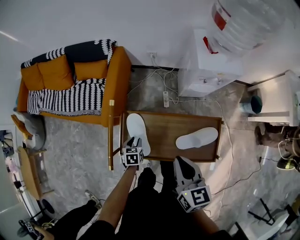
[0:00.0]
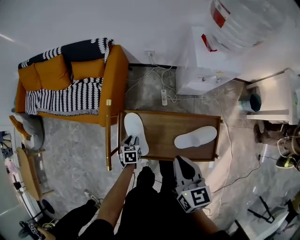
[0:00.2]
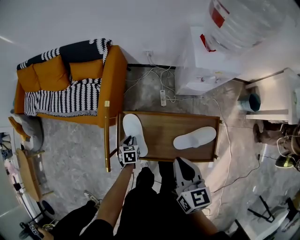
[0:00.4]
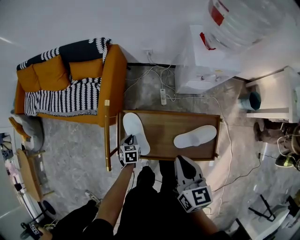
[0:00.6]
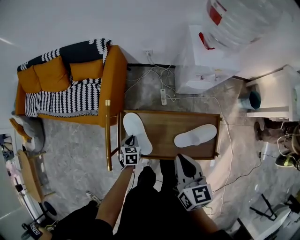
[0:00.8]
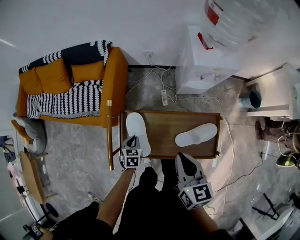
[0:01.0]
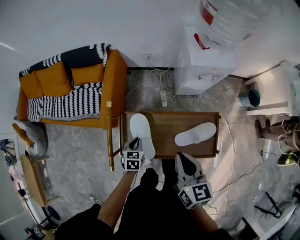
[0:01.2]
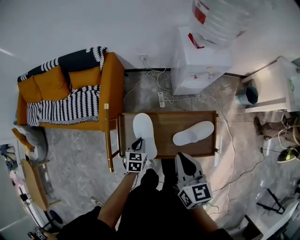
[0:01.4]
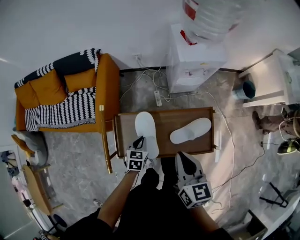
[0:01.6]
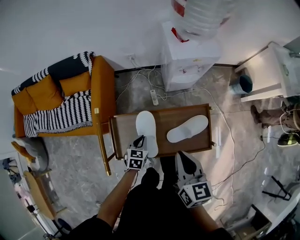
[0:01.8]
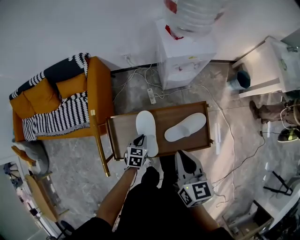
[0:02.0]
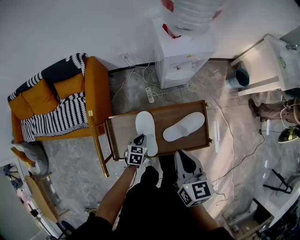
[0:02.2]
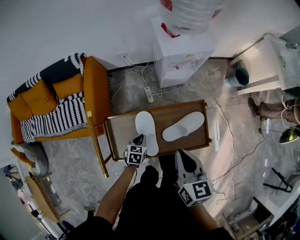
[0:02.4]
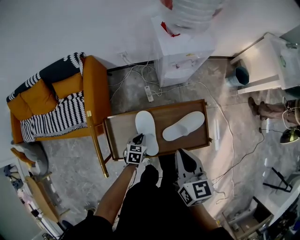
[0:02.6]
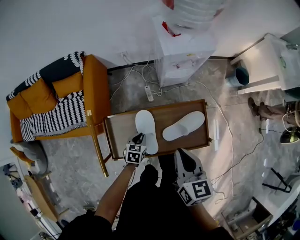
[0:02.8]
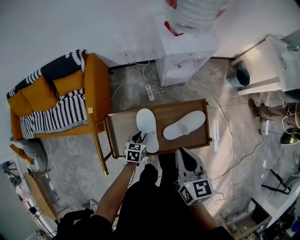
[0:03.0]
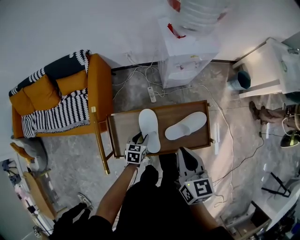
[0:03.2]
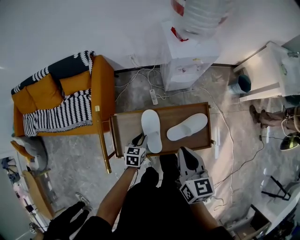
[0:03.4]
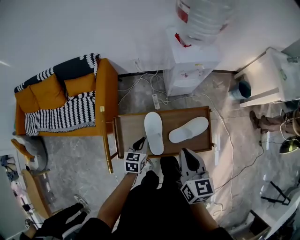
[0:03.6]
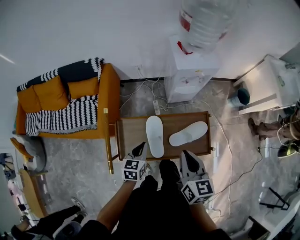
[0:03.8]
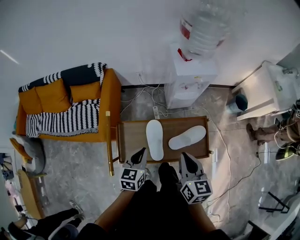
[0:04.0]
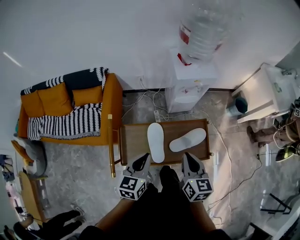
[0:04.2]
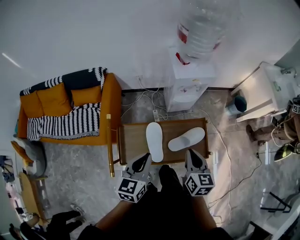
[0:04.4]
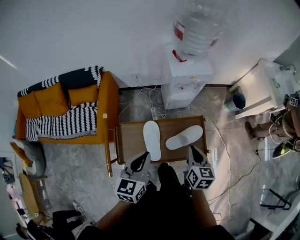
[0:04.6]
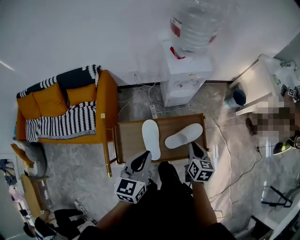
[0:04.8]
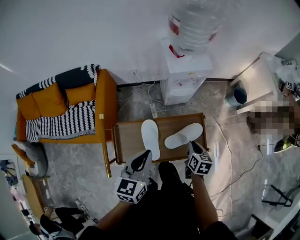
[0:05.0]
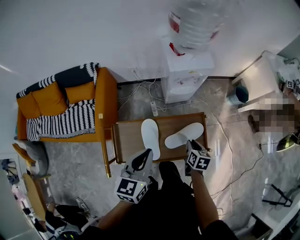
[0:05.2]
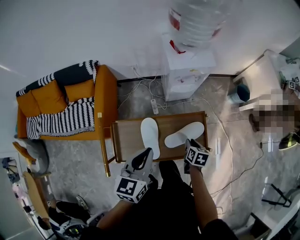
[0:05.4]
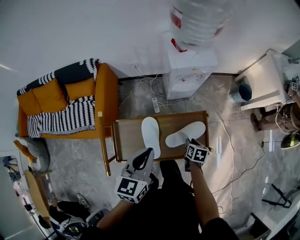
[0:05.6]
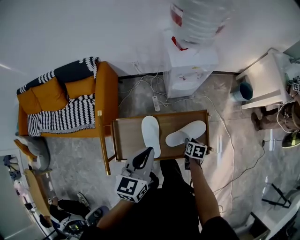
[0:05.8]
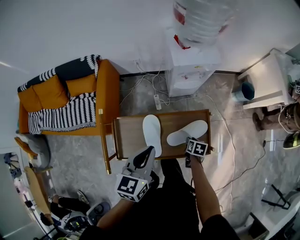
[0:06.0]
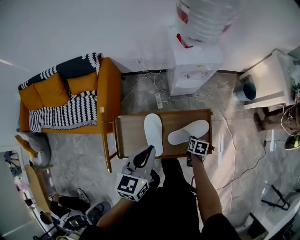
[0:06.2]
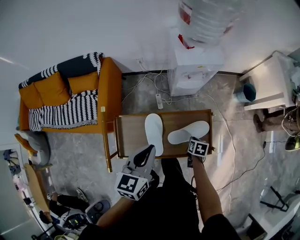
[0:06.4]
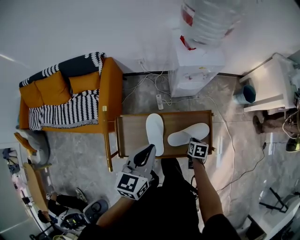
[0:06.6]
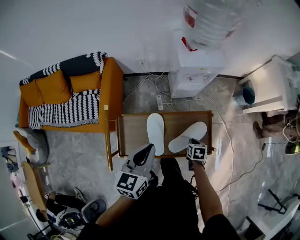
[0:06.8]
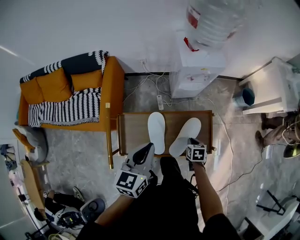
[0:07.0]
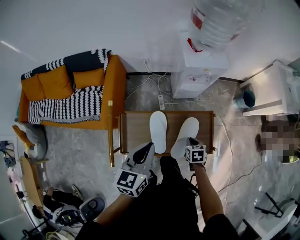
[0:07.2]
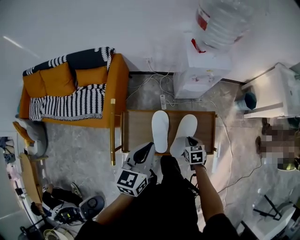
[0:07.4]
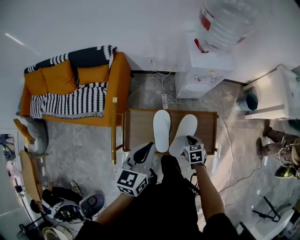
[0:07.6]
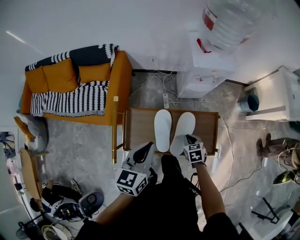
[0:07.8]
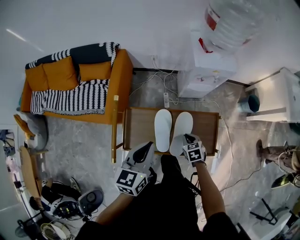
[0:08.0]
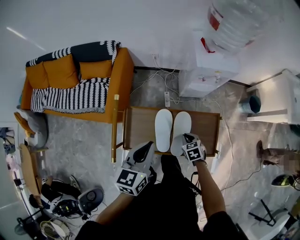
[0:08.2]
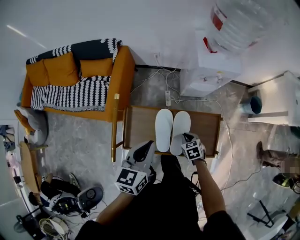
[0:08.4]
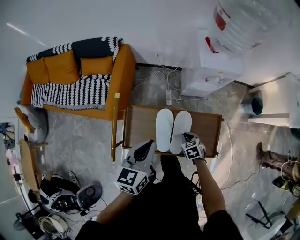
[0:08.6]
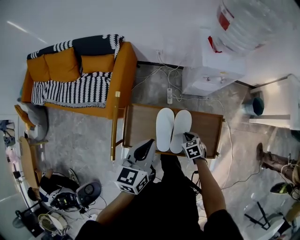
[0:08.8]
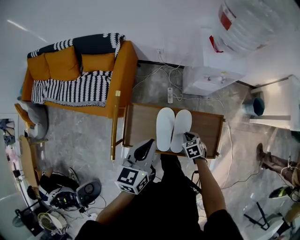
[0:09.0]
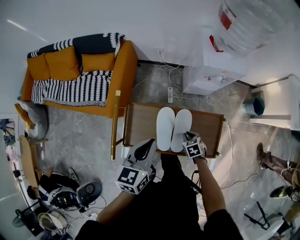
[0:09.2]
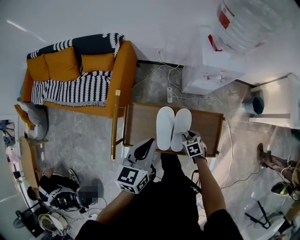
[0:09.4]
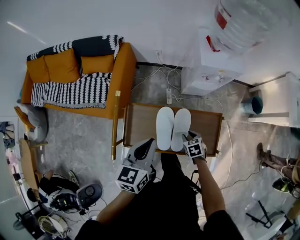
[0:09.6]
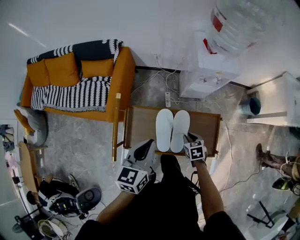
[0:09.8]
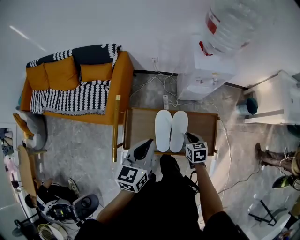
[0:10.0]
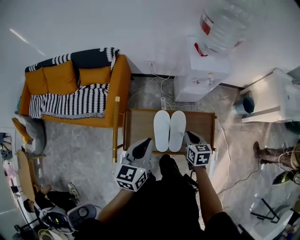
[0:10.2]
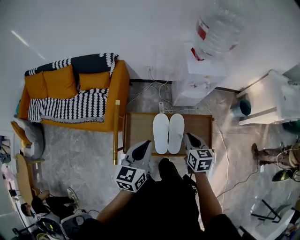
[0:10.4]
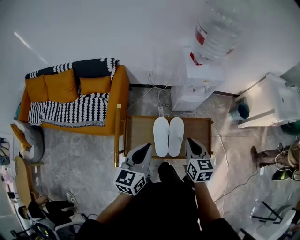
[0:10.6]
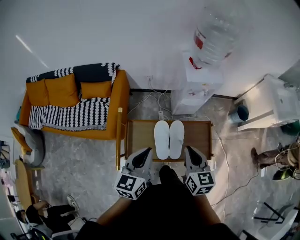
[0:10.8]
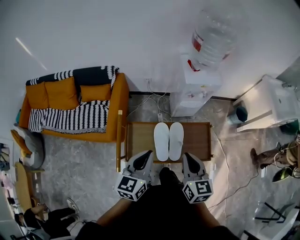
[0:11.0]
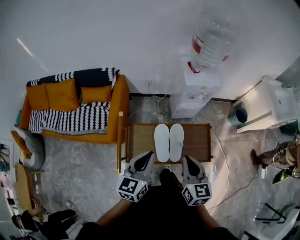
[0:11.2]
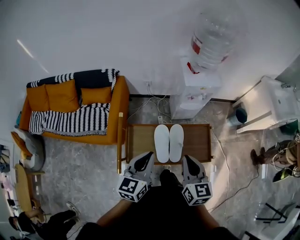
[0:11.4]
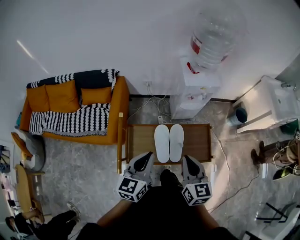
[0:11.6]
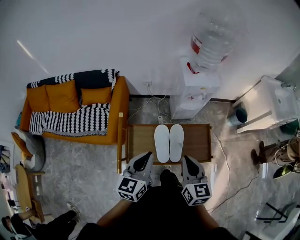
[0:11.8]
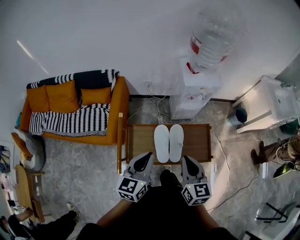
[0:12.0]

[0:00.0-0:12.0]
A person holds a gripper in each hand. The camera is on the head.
0:00.0 to 0:01.6: The left gripper is displaced to the right and upward by roughly 10 cm, changes its angle by about 20 degrees, and closes its fingers.
0:01.6 to 0:03.0: The left gripper shifts approximately 5 cm downward, and opens.
0:03.0 to 0:04.4: The left gripper moves upward, about 30 cm, angles its fingers upward, by roughly 30 degrees, and closes up.
0:04.4 to 0:06.0: The left gripper moves forward, approximately 5 cm; the right gripper shifts some 30 cm downward, tilts its fingers some 40 degrees downward, and opens.
0:06.0 to 0:07.6: The right gripper shifts approximately 10 cm to the left and upward, swivels about 40 degrees, and closes its fingers, while the left gripper shifts some 5 cm to the left.
0:07.6 to 0:09.0: The right gripper heads downward, covering some 5 cm.
0:09.0 to 0:10.4: The left gripper moves approximately 5 cm; the right gripper travels upward by some 20 cm, rotates some 40 degrees, and opens, then closes again.
0:10.4 to 0:12.0: The right gripper goes some 15 cm upward and backward.

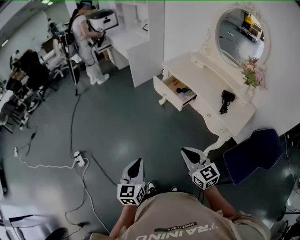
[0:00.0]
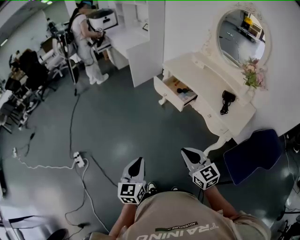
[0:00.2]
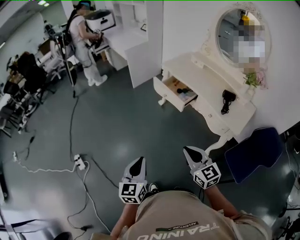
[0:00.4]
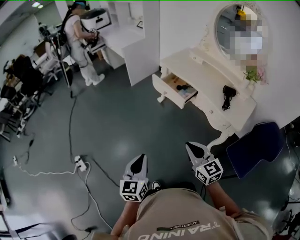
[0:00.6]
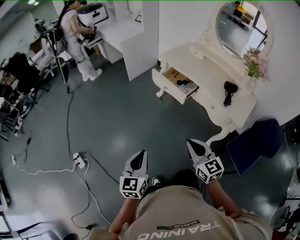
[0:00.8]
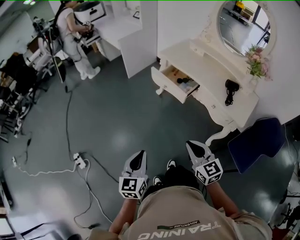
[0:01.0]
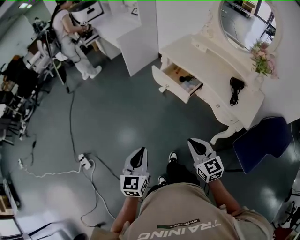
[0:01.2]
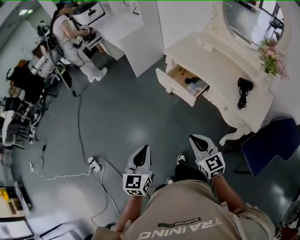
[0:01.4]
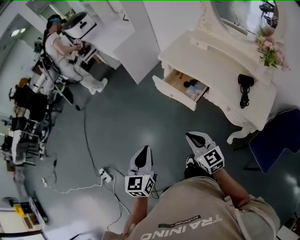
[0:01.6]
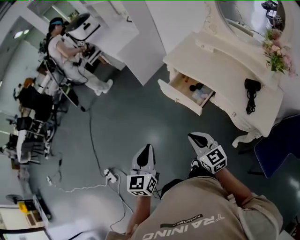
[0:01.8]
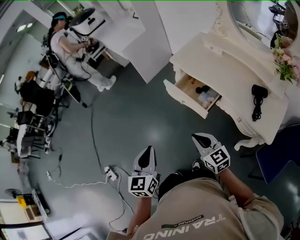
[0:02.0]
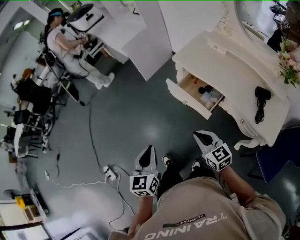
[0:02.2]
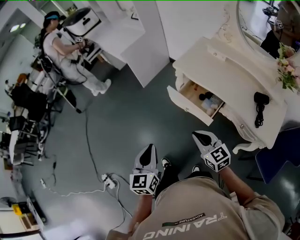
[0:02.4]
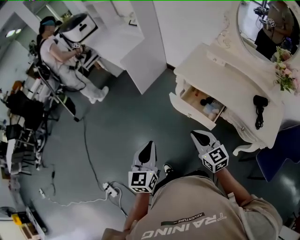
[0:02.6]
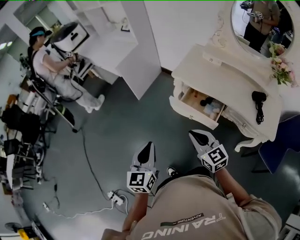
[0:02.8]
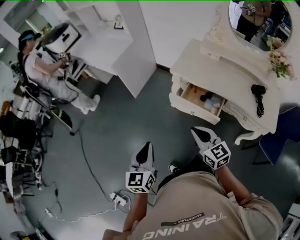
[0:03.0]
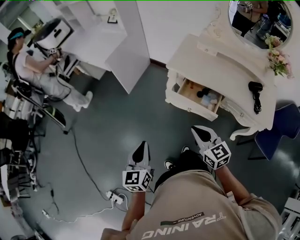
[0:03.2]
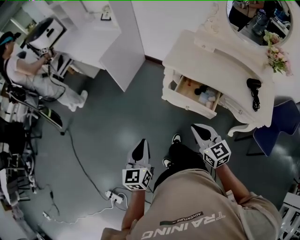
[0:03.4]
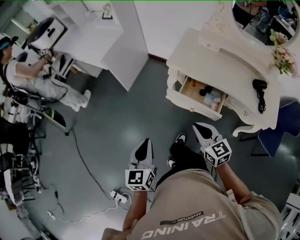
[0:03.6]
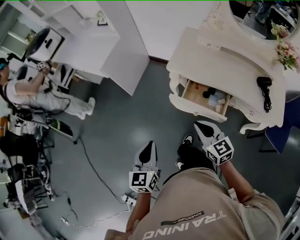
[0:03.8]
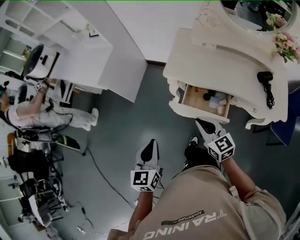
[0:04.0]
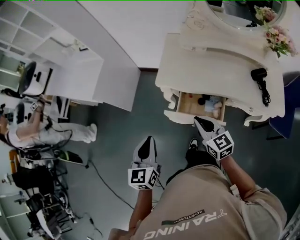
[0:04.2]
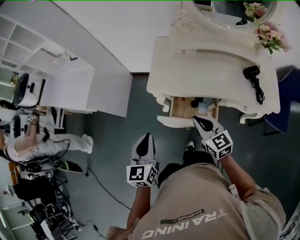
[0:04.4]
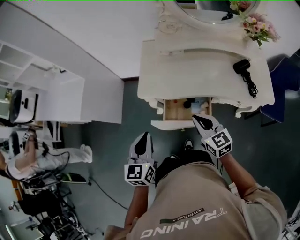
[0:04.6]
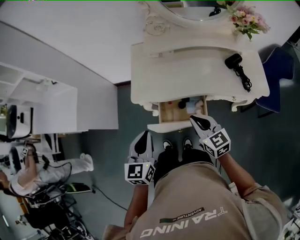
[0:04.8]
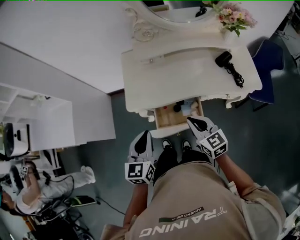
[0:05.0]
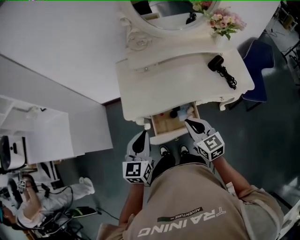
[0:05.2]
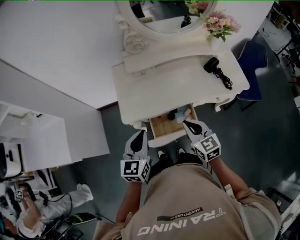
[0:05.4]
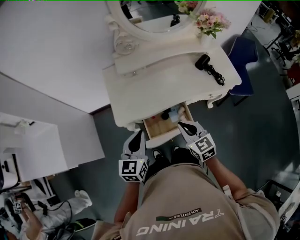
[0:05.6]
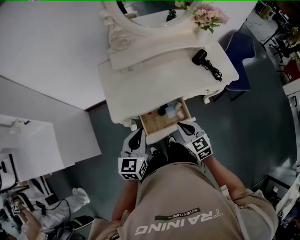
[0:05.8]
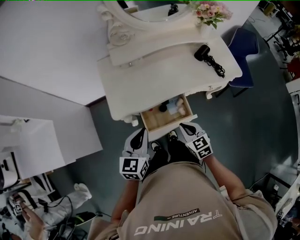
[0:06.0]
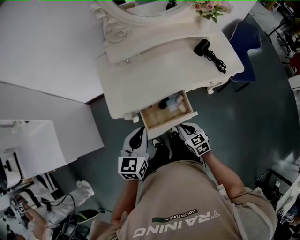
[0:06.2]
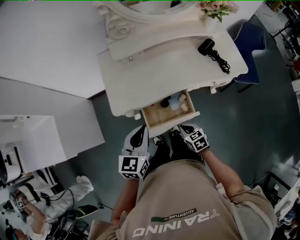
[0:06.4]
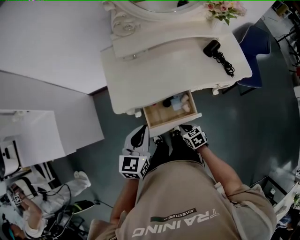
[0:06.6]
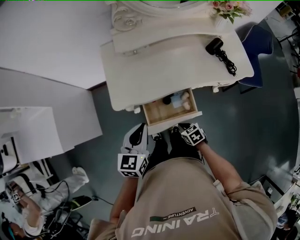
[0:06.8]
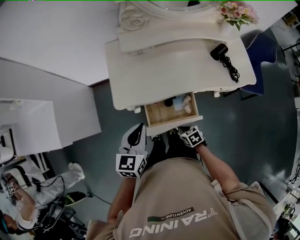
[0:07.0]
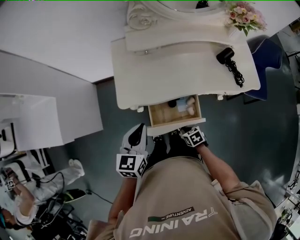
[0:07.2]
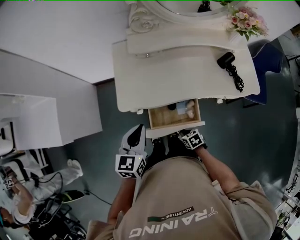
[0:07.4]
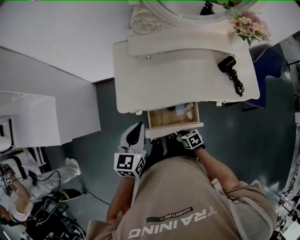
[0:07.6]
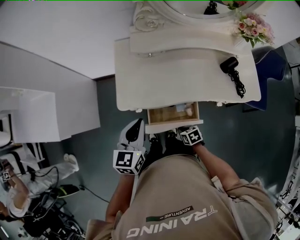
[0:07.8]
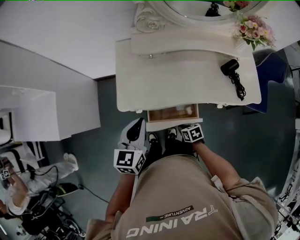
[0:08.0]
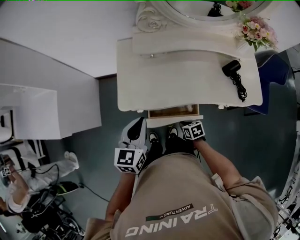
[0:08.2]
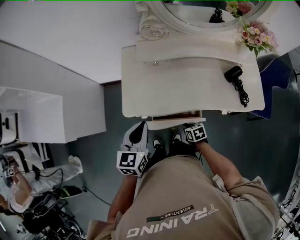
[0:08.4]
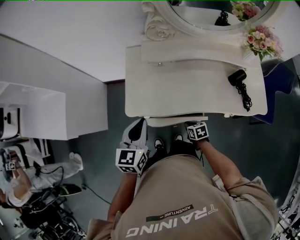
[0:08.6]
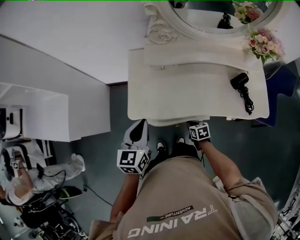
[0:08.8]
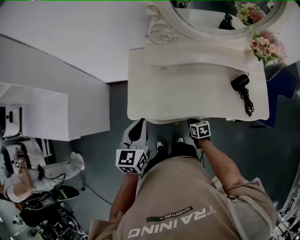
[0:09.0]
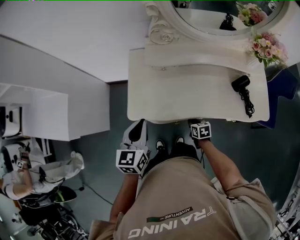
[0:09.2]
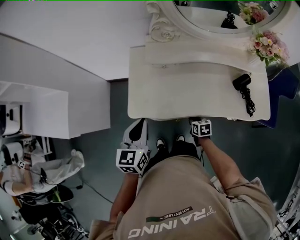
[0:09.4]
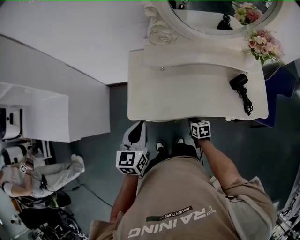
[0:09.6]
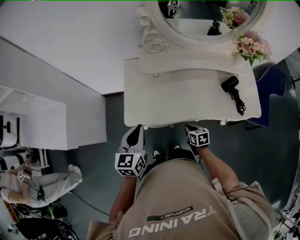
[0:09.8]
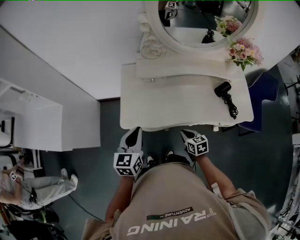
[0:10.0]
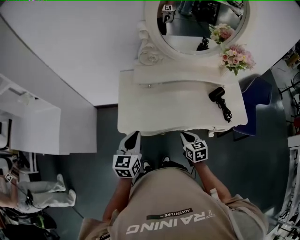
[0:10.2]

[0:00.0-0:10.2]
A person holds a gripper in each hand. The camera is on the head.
0:00.0 to 0:01.4: Both grippers move forward, roughly 20 cm.
0:01.4 to 0:03.0: The left gripper moves forward, some 30 cm, while the right gripper goes about 30 cm forward and to the left.
0:03.0 to 0:04.4: The right gripper goes about 20 cm forward and to the right, and rotates about 20 degrees. Meanwhile the left gripper travels forward by about 25 cm, and swivels some 20 degrees.
0:04.4 to 0:05.8: The left gripper changes place by some 15 cm, and rotates about 40 degrees; the right gripper shifts by approximately 5 cm, and rotates roughly 30 degrees.
0:05.8 to 0:07.2: The right gripper heads downward, covering roughly 25 cm, and tilts its fingers some 30 degrees downward.
0:07.2 to 0:08.8: The right gripper goes approximately 15 cm forward and to the right; the left gripper goes roughly 10 cm forward.
0:08.8 to 0:10.2: The right gripper shifts approximately 15 cm upward, and changes its angle by approximately 20 degrees.

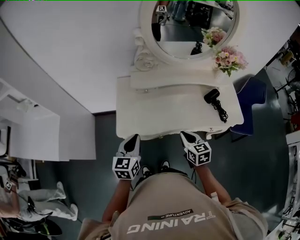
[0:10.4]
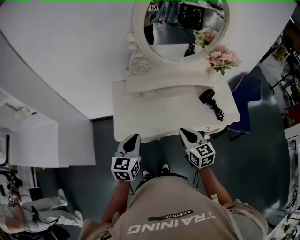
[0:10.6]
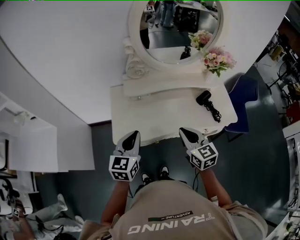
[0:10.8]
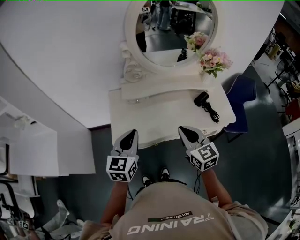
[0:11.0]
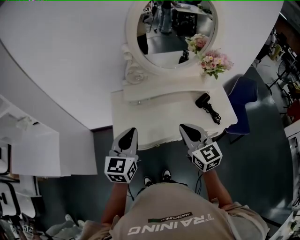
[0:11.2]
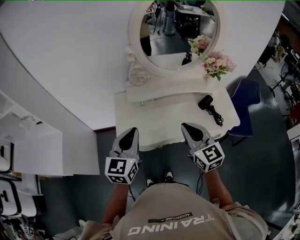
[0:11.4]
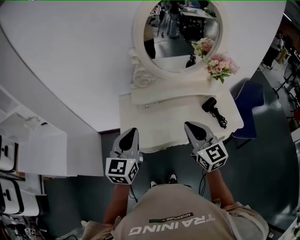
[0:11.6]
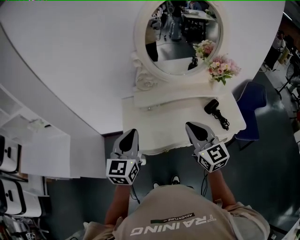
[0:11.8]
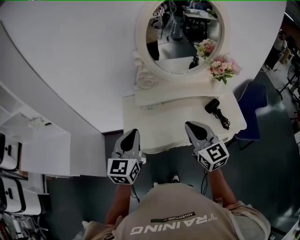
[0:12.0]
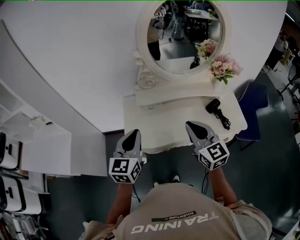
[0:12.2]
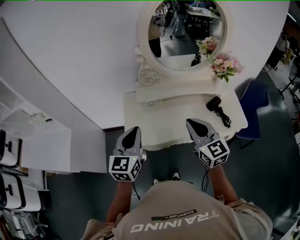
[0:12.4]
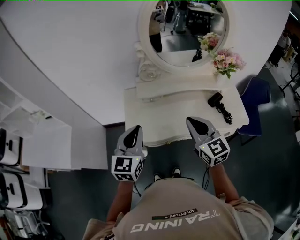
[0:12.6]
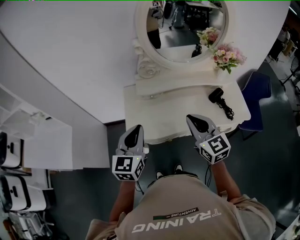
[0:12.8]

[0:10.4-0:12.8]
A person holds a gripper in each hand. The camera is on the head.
0:10.4 to 0:11.6: The two grippers go approximately 20 cm upward. The right gripper rotates about 30 degrees.
0:11.6 to 0:12.8: The grippers make only small movements.
